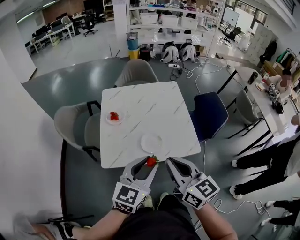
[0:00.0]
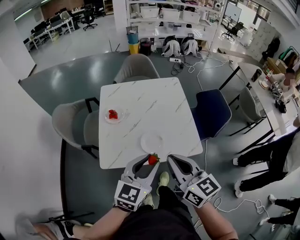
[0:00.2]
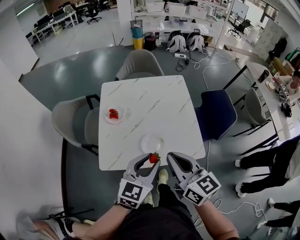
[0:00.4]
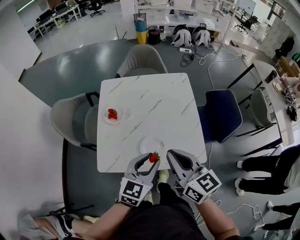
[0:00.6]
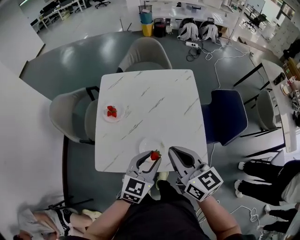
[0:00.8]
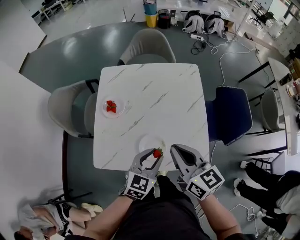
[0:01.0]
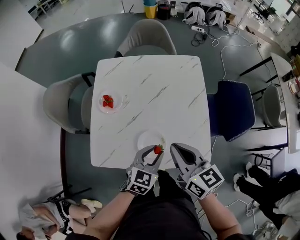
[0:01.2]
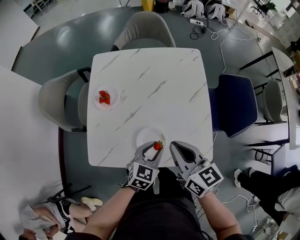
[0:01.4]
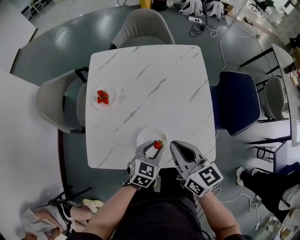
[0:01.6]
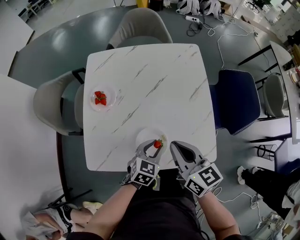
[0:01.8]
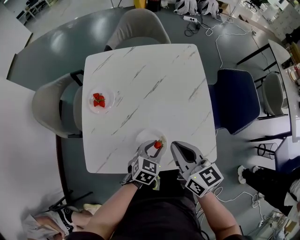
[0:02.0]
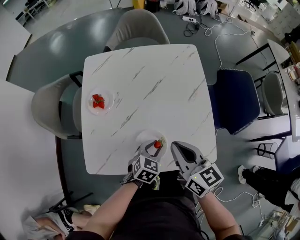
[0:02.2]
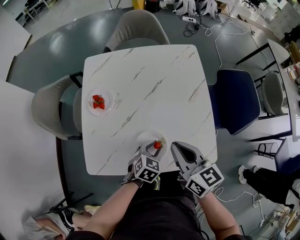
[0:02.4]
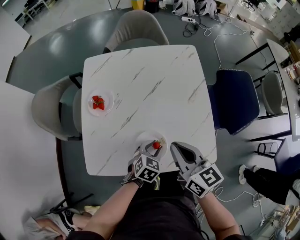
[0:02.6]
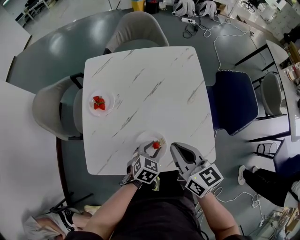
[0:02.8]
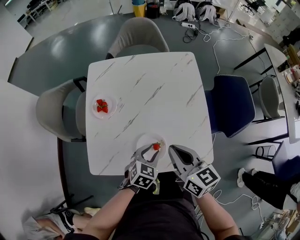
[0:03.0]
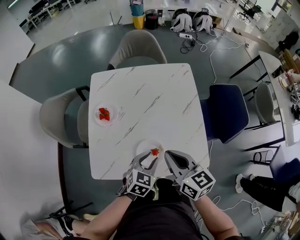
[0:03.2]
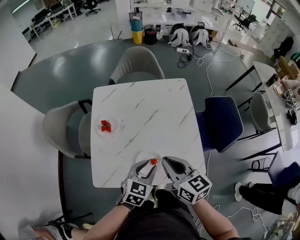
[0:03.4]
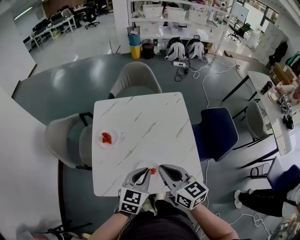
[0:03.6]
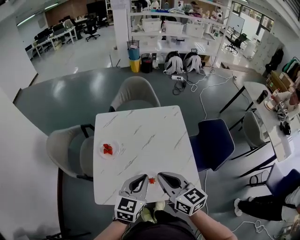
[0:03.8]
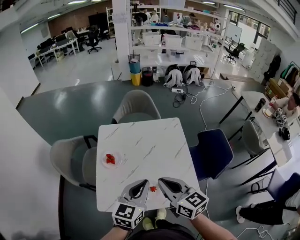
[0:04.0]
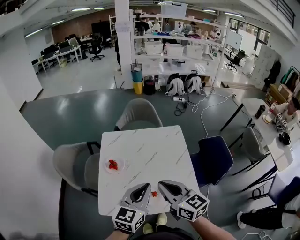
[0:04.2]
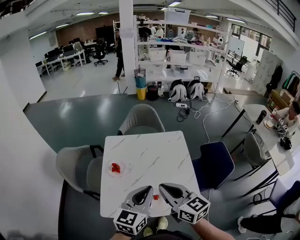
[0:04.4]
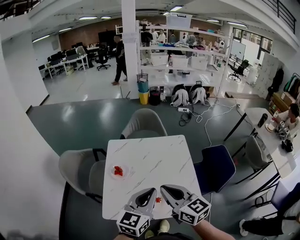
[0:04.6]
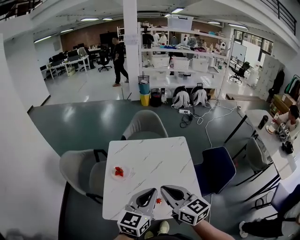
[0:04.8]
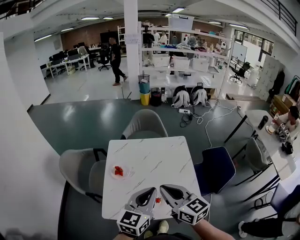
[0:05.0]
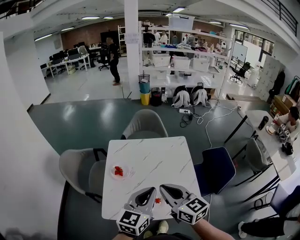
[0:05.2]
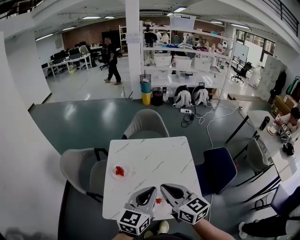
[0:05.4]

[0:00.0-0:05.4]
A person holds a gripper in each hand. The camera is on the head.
0:00.0 to 0:01.4: The right gripper shifts approximately 30 cm forward and downward, while the left gripper heads downward and forward, covering roughly 35 cm, and changes its angle by about 30 degrees.
0:01.4 to 0:02.8: The left gripper travels downward by some 10 cm.
0:02.8 to 0:04.0: The left gripper goes some 35 cm upward, points its fingers about 40 degrees further upward, and closes its fingers; the right gripper moves upward, approximately 15 cm.
0:04.0 to 0:05.4: The left gripper is displaced upward by some 5 cm.

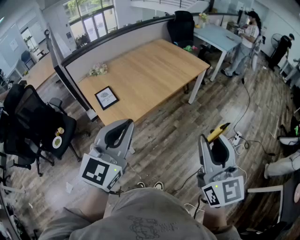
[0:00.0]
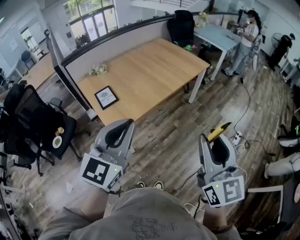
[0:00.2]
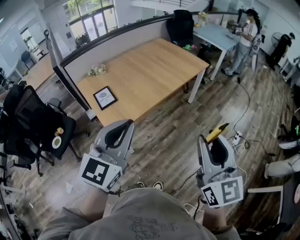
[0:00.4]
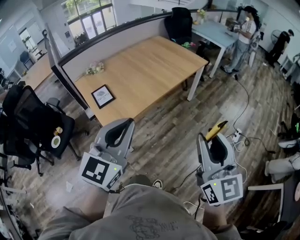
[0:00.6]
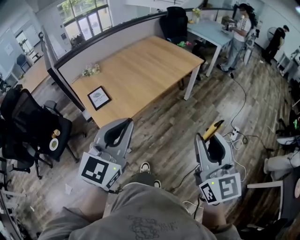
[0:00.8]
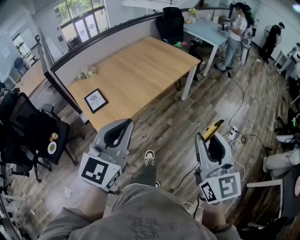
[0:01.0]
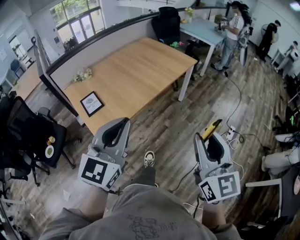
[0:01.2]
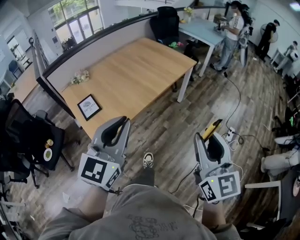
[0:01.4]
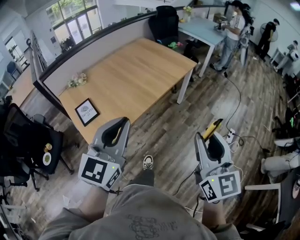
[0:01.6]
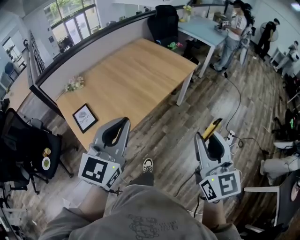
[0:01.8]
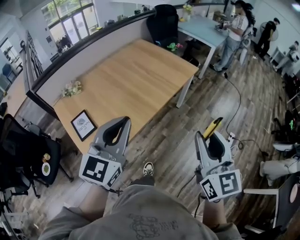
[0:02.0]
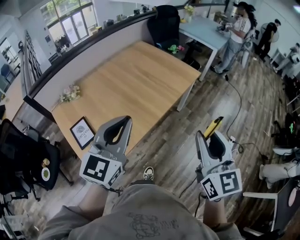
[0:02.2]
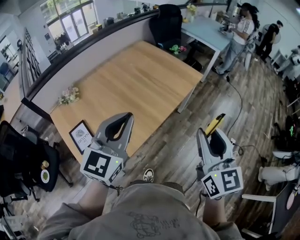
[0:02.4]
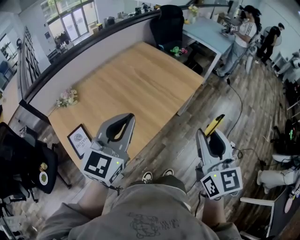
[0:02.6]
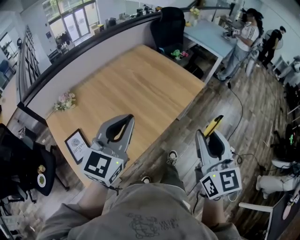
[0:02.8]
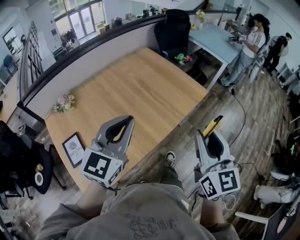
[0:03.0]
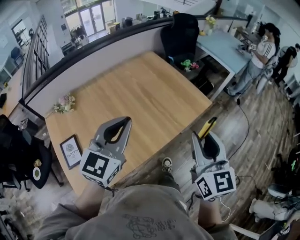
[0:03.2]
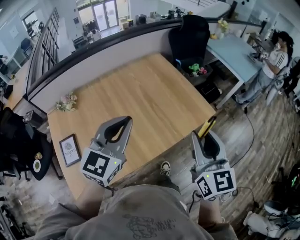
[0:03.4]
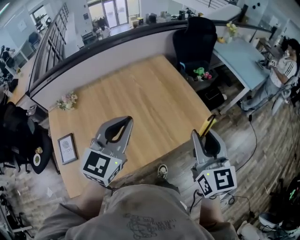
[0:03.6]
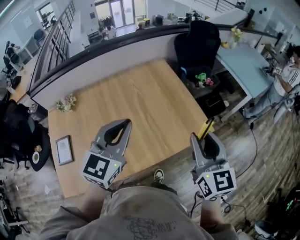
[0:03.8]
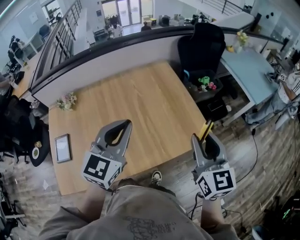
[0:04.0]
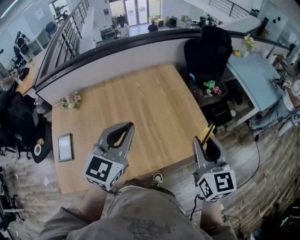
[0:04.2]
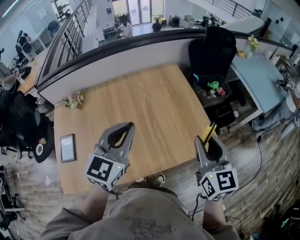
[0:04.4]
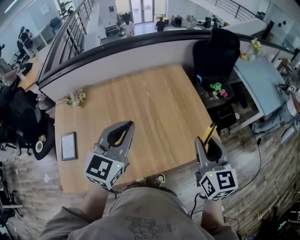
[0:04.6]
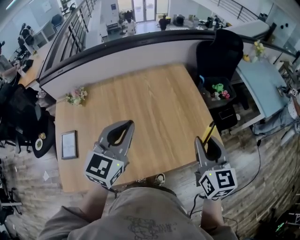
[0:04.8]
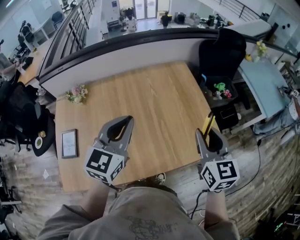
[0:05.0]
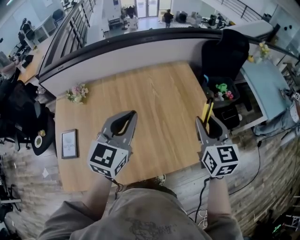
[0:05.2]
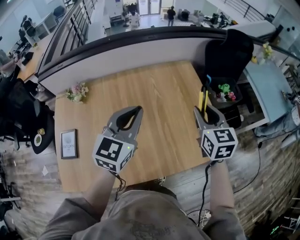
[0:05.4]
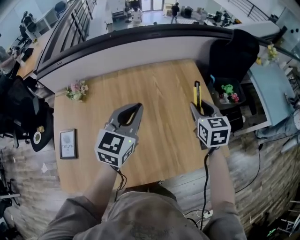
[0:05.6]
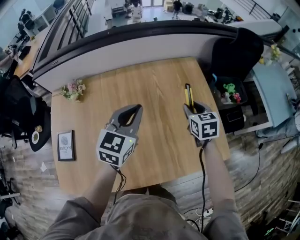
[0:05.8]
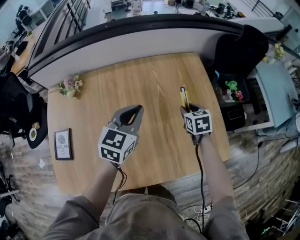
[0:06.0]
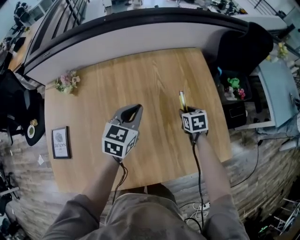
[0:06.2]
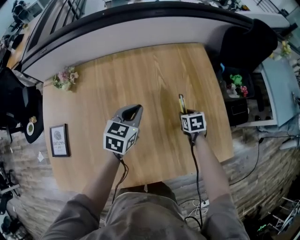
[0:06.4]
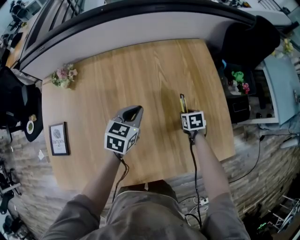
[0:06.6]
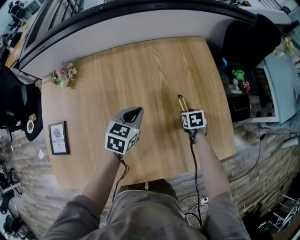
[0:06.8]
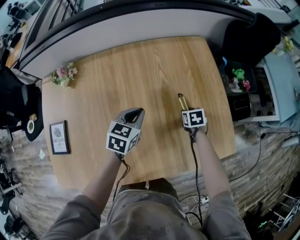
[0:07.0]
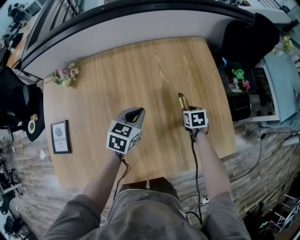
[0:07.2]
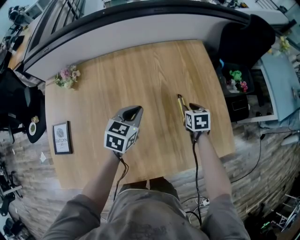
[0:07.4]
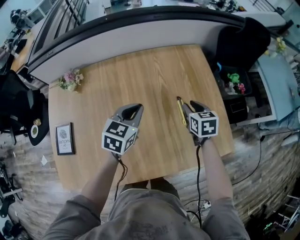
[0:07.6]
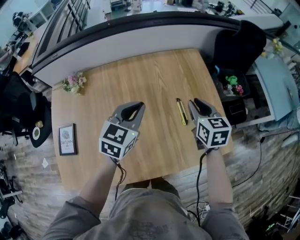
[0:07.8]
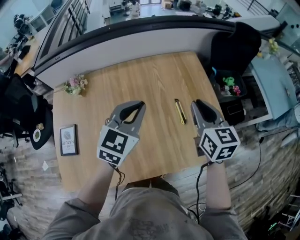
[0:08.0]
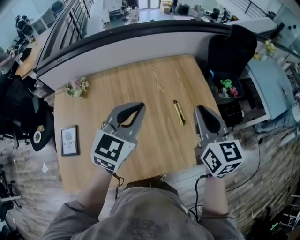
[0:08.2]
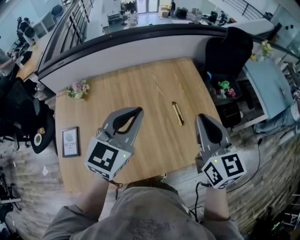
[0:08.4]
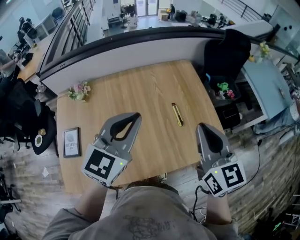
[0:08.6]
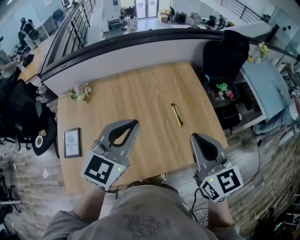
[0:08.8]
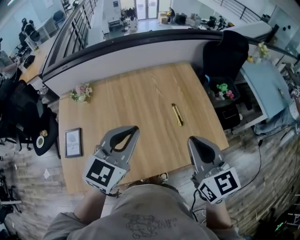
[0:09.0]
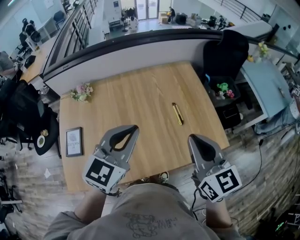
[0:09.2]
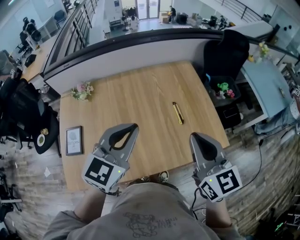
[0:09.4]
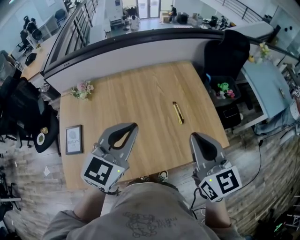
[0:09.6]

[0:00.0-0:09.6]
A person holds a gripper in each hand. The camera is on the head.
0:00.0 to 0:01.6: The right gripper moves forward and to the right, about 15 cm, while the left gripper shifts about 15 cm forward.
0:01.6 to 0:03.2: The pair of grippers is taken forward, about 40 cm.
0:03.2 to 0:04.8: Both grippers travel together forward, approximately 20 cm. The right gripper turns by approximately 20 degrees. The left gripper swivels roughly 20 degrees.
0:04.8 to 0:06.4: Both grippers travel together downward and forward, about 40 cm. The right gripper angles its fingers downward, by about 50 degrees. The left gripper changes its angle by roughly 30 degrees.
0:06.4 to 0:08.0: The left gripper shifts some 20 cm upward and backward, and turns by roughly 20 degrees. Meanwhile the right gripper goes some 30 cm upward, and points its fingers roughly 40 degrees further upward.
0:08.0 to 0:09.6: The grippers both shift backward and upward by roughly 20 cm.

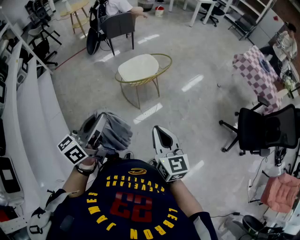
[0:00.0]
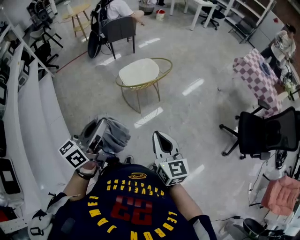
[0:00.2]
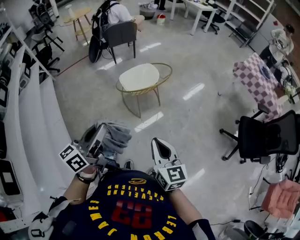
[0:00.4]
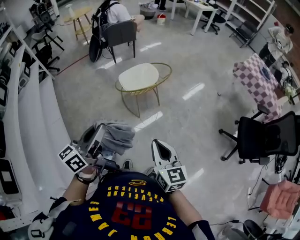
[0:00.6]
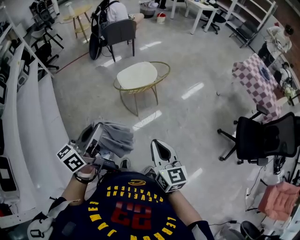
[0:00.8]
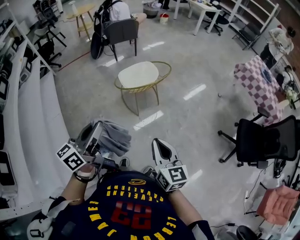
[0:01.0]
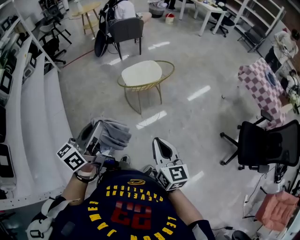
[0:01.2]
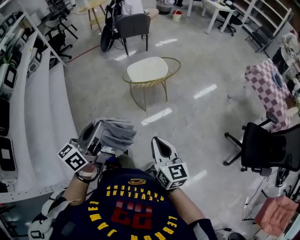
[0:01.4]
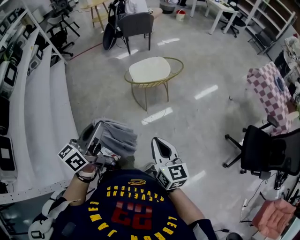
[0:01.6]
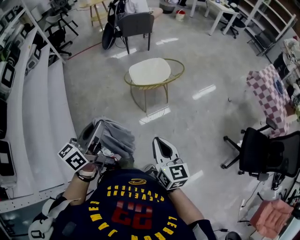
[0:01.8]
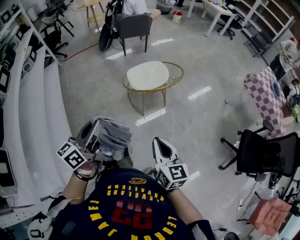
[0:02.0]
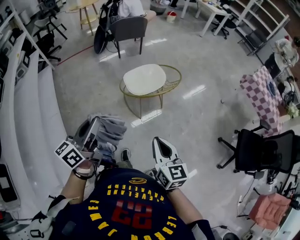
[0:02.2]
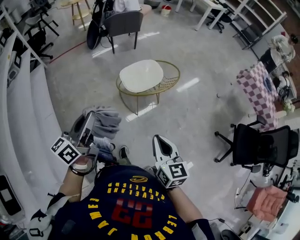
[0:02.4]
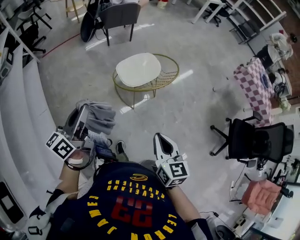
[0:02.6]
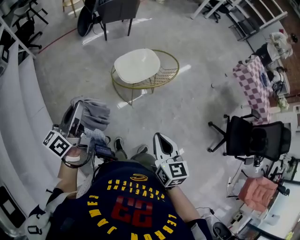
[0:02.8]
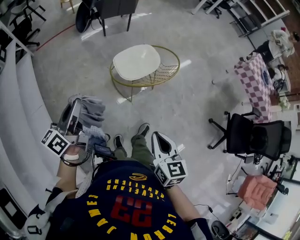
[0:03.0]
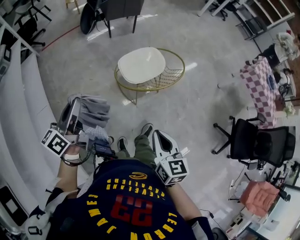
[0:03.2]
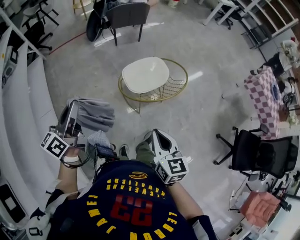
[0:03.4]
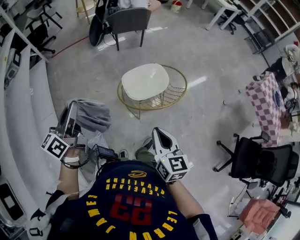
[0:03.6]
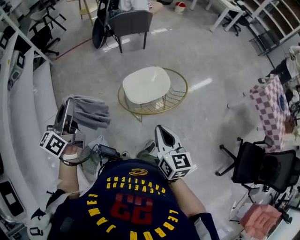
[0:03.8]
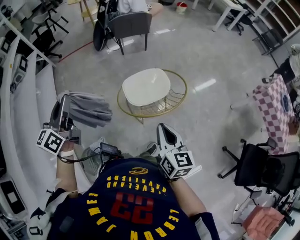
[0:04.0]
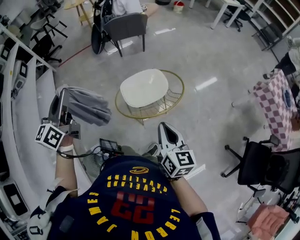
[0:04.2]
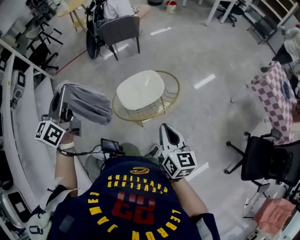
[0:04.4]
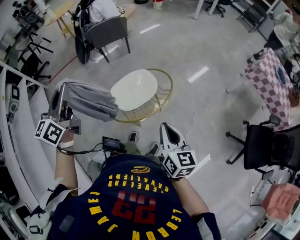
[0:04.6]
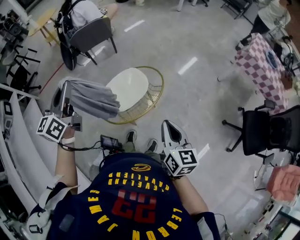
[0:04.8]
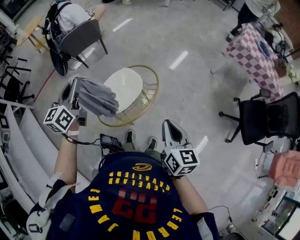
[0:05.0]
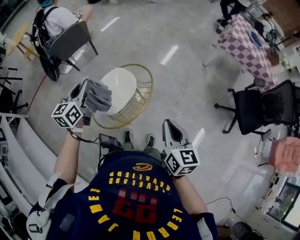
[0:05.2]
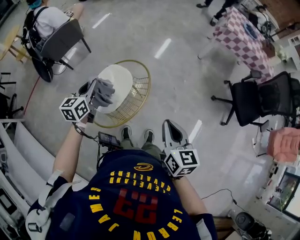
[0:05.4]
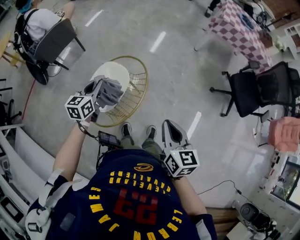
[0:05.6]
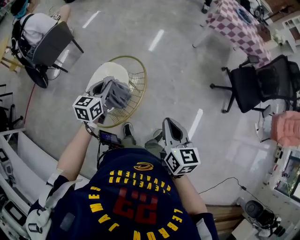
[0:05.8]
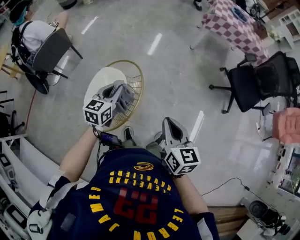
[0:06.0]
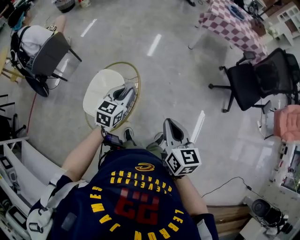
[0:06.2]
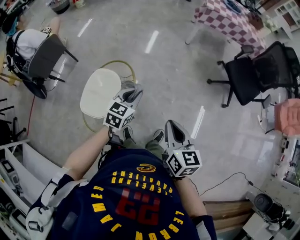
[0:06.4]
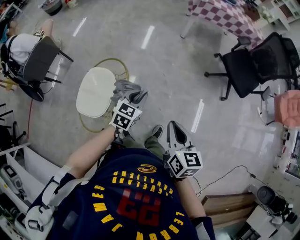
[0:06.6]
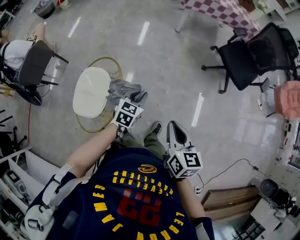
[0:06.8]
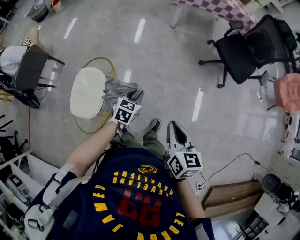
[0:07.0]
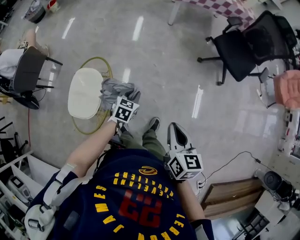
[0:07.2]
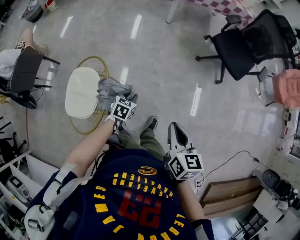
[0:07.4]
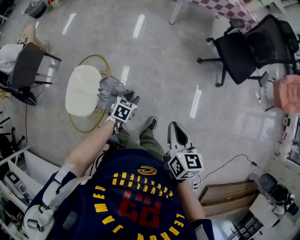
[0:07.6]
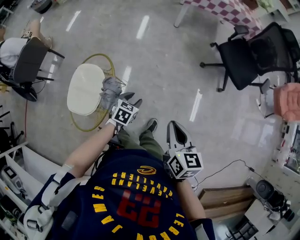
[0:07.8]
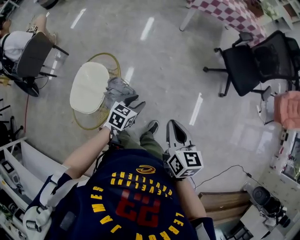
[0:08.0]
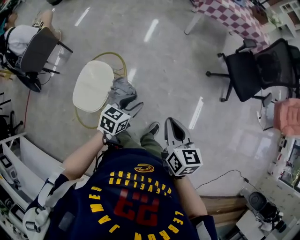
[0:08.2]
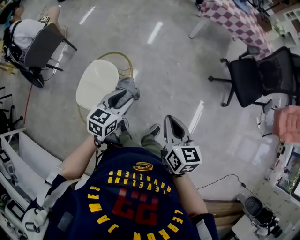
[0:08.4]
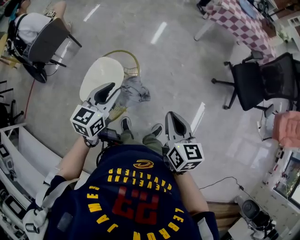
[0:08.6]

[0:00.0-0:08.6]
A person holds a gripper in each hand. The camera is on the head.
0:00.0 to 0:01.4: The right gripper heads to the right, covering some 5 cm; the left gripper moves approximately 5 cm.
0:01.4 to 0:02.8: The left gripper travels forward and to the left by roughly 30 cm. The right gripper moves forward and to the left, about 20 cm, and rotates approximately 20 degrees.
0:02.8 to 0:04.4: The left gripper travels forward, to the right and upward by approximately 25 cm, and changes its angle by roughly 30 degrees. The right gripper goes about 30 cm forward and to the right.
0:04.4 to 0:05.8: The left gripper changes place by about 40 cm, and changes its angle by roughly 60 degrees. The right gripper changes place by some 5 cm, and rotates some 40 degrees.
0:05.8 to 0:07.2: The right gripper goes approximately 20 cm to the right, and rotates approximately 20 degrees; the left gripper shifts approximately 35 cm to the right and downward, and changes its angle by roughly 40 degrees.
0:07.2 to 0:08.6: The left gripper shifts approximately 30 cm to the left and upward, turns by roughly 30 degrees, and opens its fingers, while the right gripper moves to the left, approximately 15 cm.
